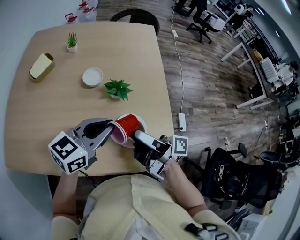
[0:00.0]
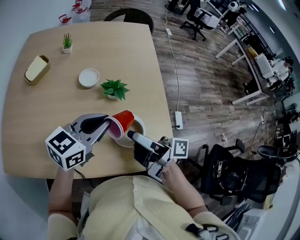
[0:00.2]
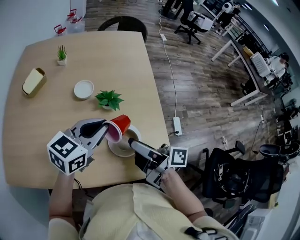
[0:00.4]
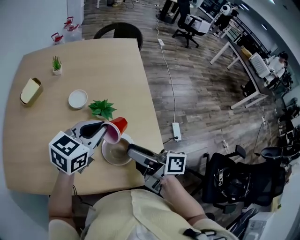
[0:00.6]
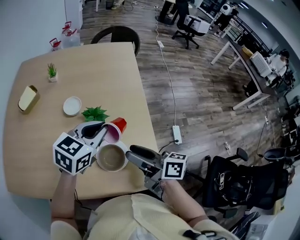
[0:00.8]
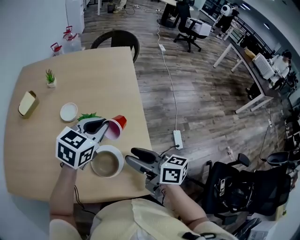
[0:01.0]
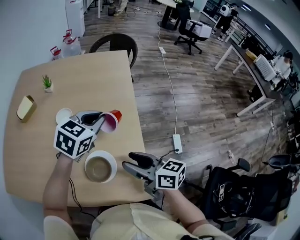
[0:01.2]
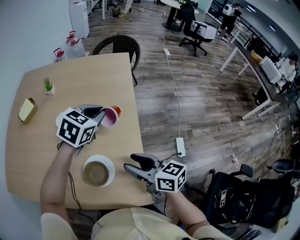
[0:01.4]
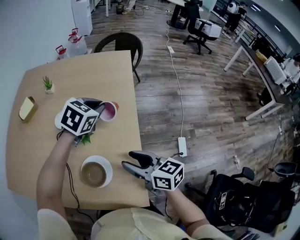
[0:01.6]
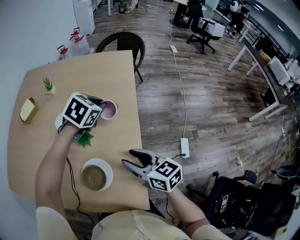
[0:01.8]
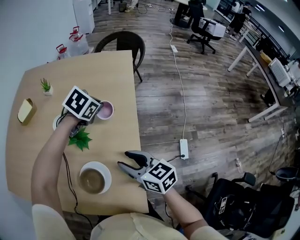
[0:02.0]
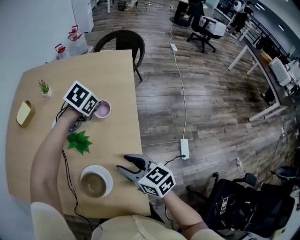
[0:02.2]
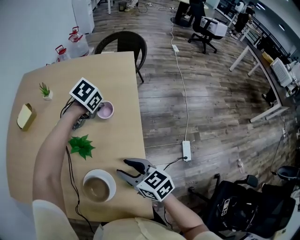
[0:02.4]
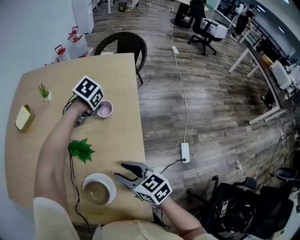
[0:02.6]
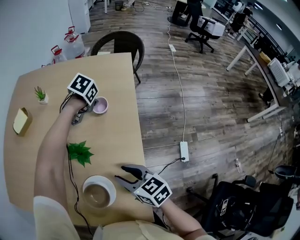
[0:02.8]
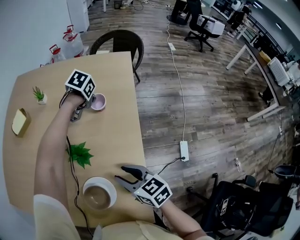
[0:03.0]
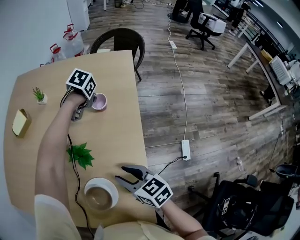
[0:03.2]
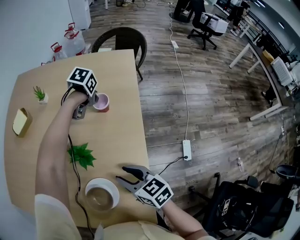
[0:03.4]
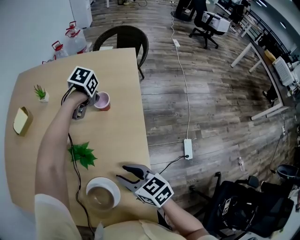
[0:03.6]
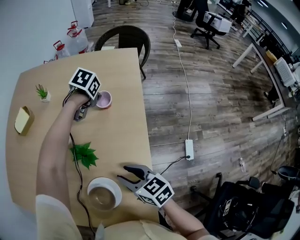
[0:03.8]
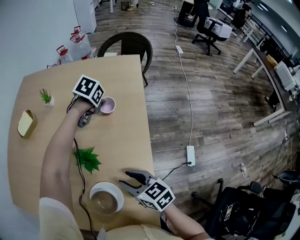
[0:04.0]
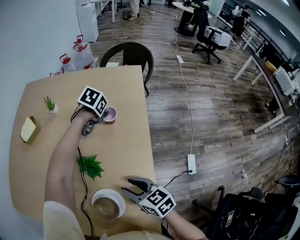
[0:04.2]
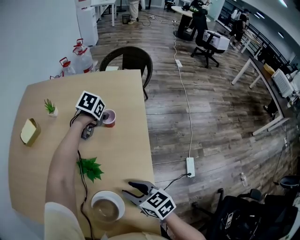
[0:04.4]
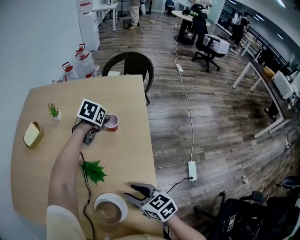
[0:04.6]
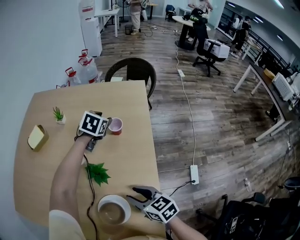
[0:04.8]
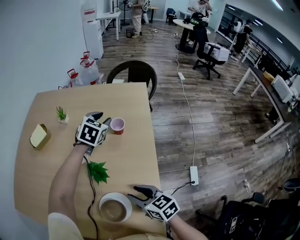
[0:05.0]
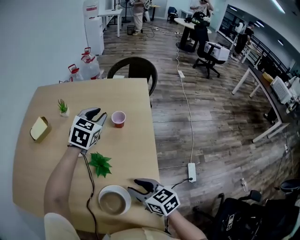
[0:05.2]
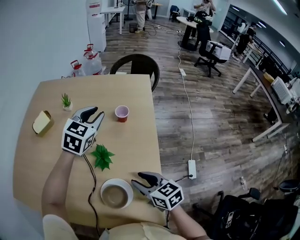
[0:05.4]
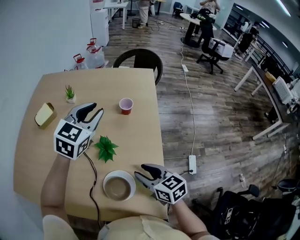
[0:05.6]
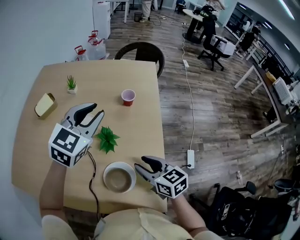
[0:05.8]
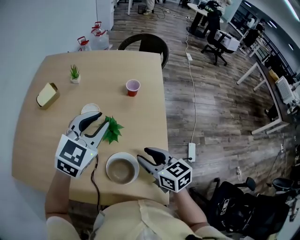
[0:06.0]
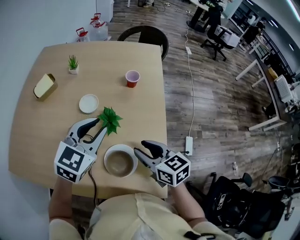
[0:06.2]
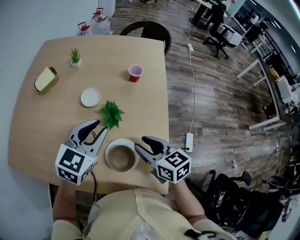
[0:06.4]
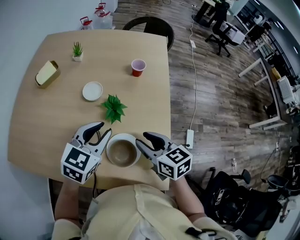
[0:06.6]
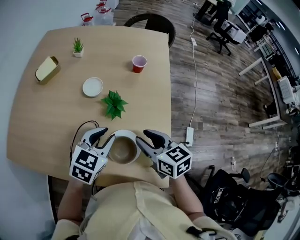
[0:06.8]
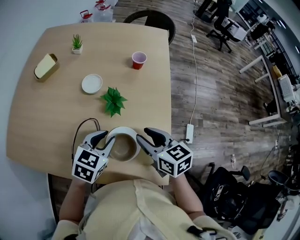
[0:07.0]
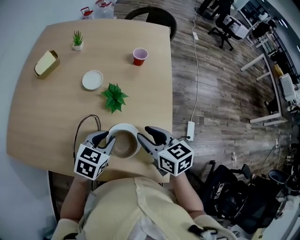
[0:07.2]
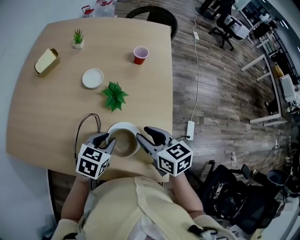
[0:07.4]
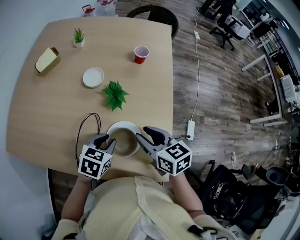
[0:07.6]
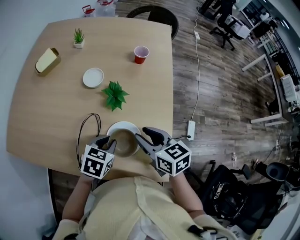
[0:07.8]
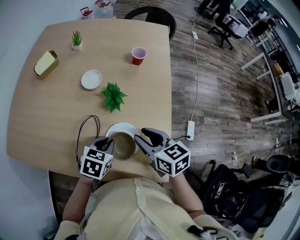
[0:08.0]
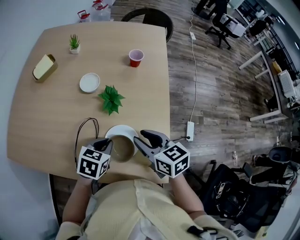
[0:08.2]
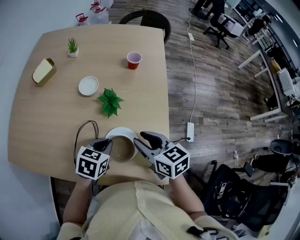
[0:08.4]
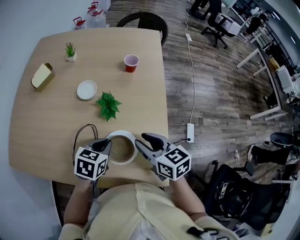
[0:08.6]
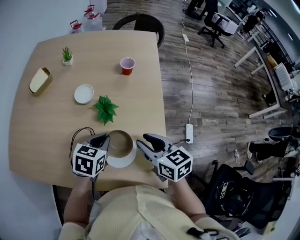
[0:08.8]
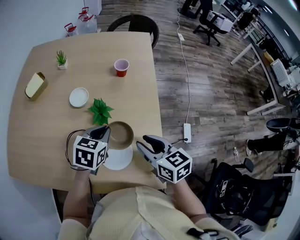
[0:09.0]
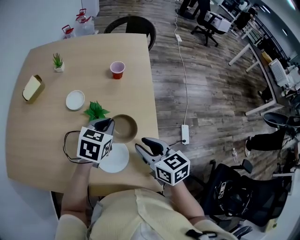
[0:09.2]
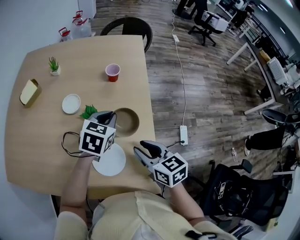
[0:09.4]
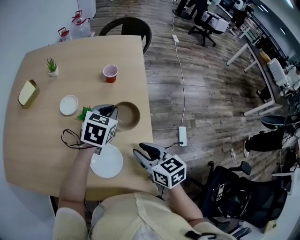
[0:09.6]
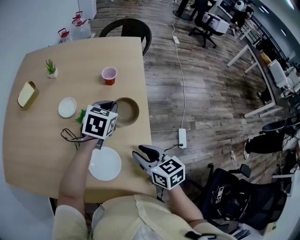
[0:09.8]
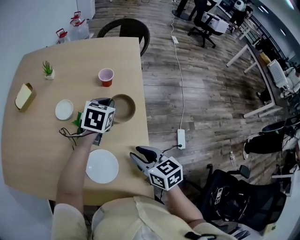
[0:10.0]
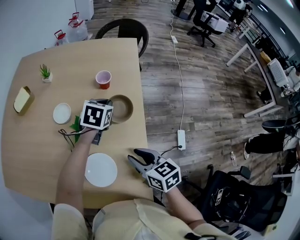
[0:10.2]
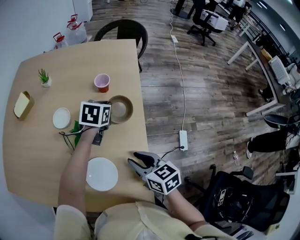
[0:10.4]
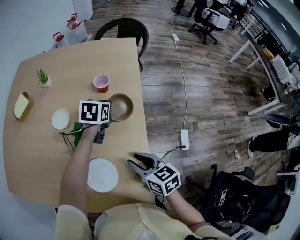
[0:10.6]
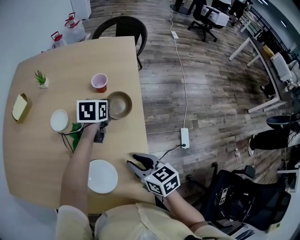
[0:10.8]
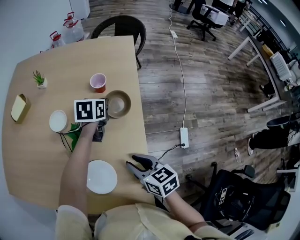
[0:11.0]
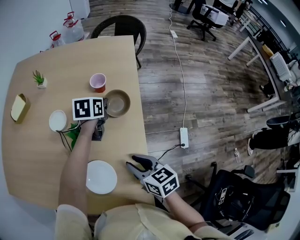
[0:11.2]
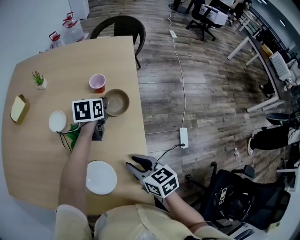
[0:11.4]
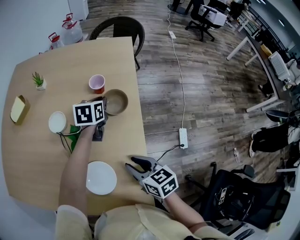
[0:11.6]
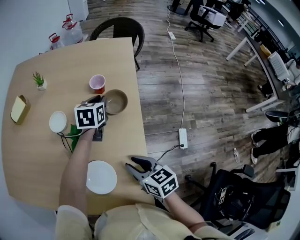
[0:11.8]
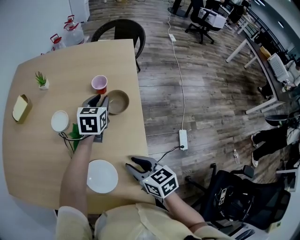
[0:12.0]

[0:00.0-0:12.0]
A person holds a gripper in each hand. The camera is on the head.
0:00.0 to 0:01.6: The left gripper is displaced forward and to the right by about 30 cm, and tilts its fingers approximately 30 degrees downward; the right gripper moves to the right, about 20 cm, and twists approximately 50 degrees counterclockwise, seen from behind.
0:01.6 to 0:03.0: The left gripper shifts roughly 20 cm forward and downward, and swivels some 30 degrees, while the right gripper shifts about 10 cm forward and downward.
0:03.0 to 0:04.4: The left gripper opens its fingers.
0:04.4 to 0:06.0: The right gripper shifts approximately 5 cm upward. Meanwhile the left gripper moves backward, upward and to the left, about 35 cm, and points its fingers approximately 40 degrees further upward.
0:06.0 to 0:07.6: The left gripper travels downward and backward by roughly 25 cm, and swivels about 40 degrees.
0:07.6 to 0:09.0: The left gripper moves forward and upward, approximately 10 cm, and closes.
0:09.0 to 0:10.4: The right gripper changes place by some 5 cm. Meanwhile the left gripper shifts approximately 20 cm forward and to the right.
0:10.4 to 0:12.0: The grippers make only small movements.

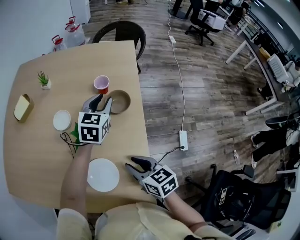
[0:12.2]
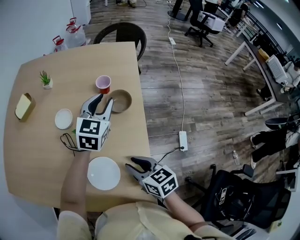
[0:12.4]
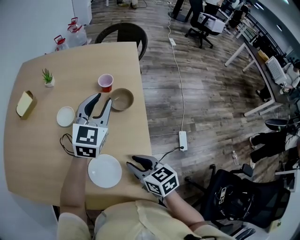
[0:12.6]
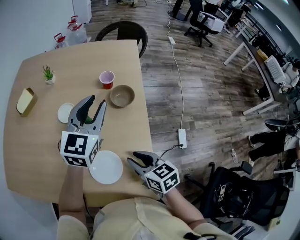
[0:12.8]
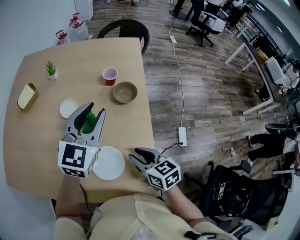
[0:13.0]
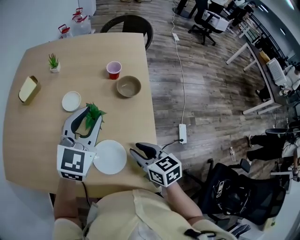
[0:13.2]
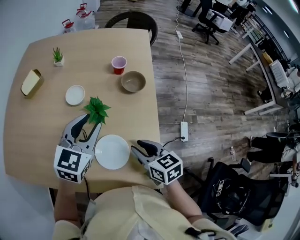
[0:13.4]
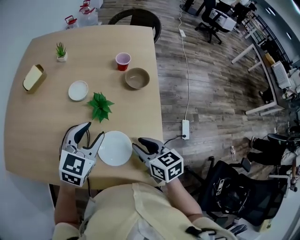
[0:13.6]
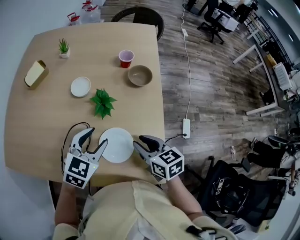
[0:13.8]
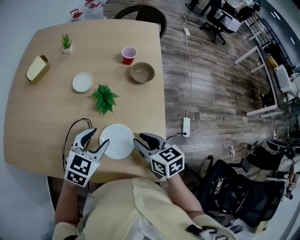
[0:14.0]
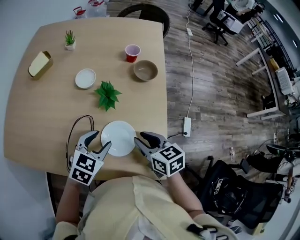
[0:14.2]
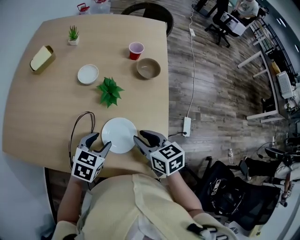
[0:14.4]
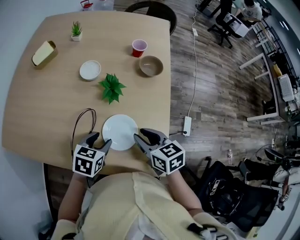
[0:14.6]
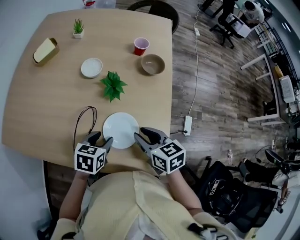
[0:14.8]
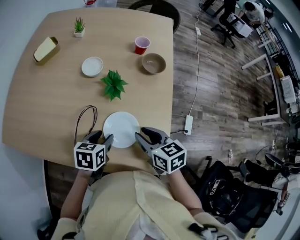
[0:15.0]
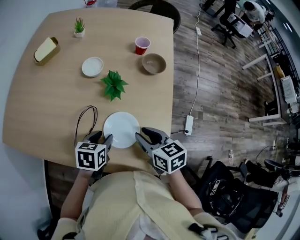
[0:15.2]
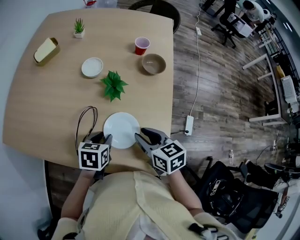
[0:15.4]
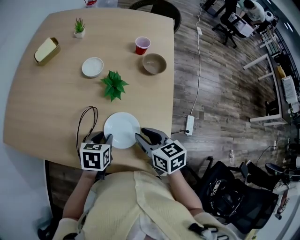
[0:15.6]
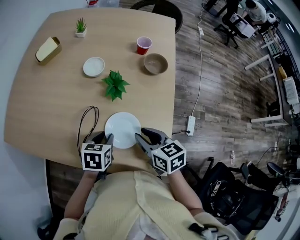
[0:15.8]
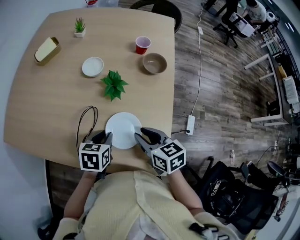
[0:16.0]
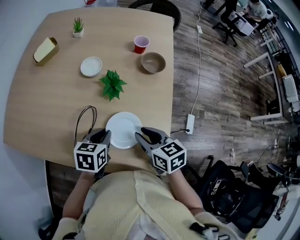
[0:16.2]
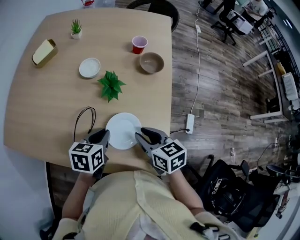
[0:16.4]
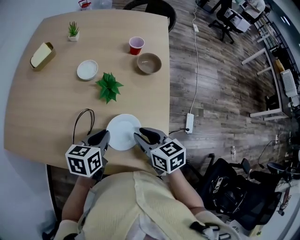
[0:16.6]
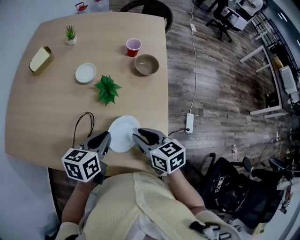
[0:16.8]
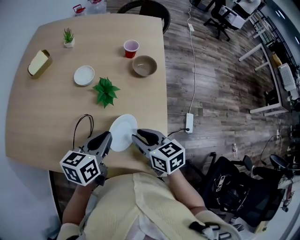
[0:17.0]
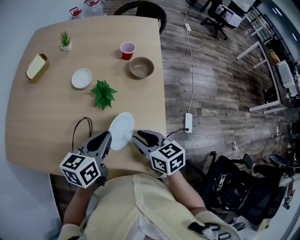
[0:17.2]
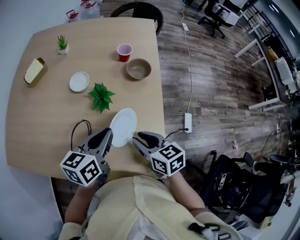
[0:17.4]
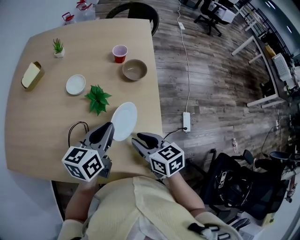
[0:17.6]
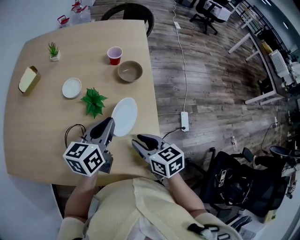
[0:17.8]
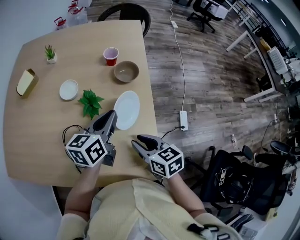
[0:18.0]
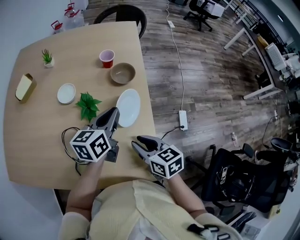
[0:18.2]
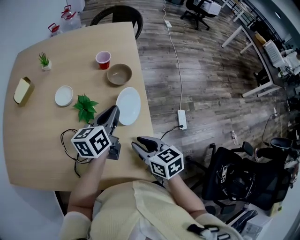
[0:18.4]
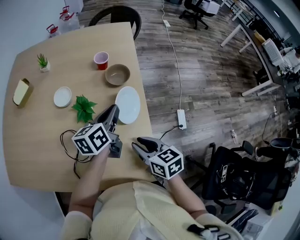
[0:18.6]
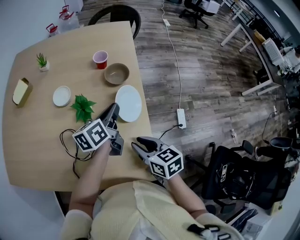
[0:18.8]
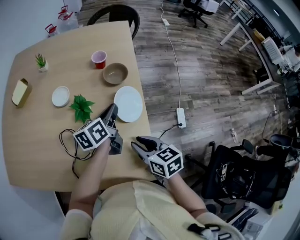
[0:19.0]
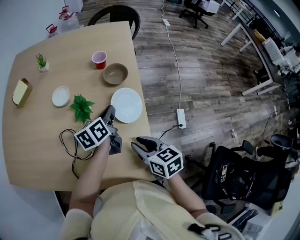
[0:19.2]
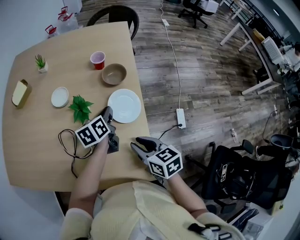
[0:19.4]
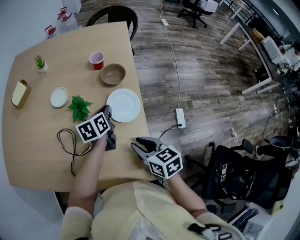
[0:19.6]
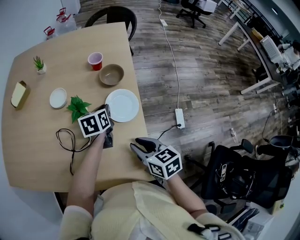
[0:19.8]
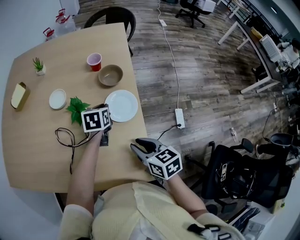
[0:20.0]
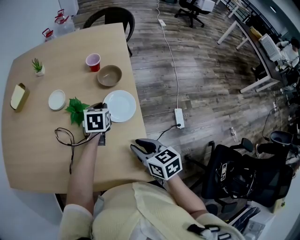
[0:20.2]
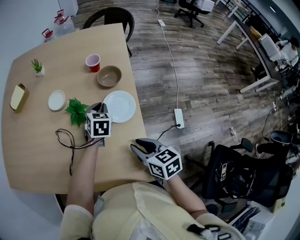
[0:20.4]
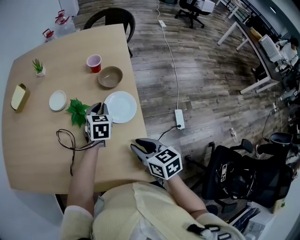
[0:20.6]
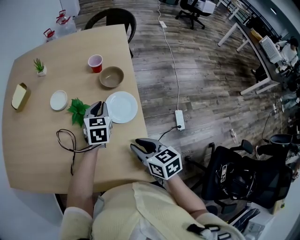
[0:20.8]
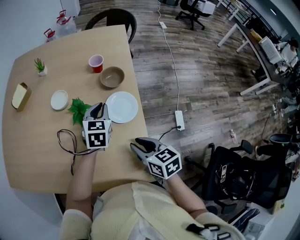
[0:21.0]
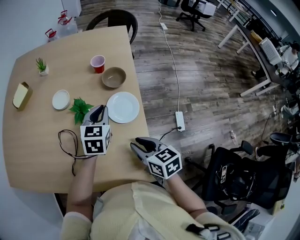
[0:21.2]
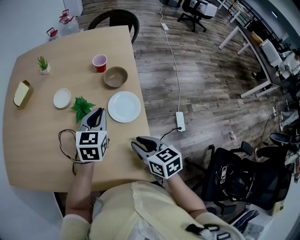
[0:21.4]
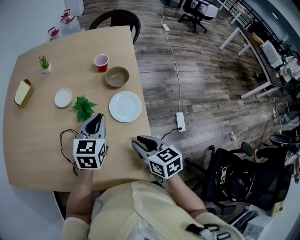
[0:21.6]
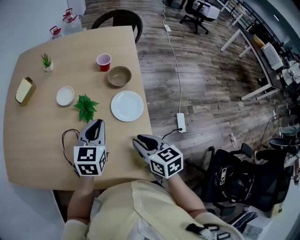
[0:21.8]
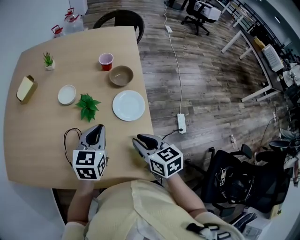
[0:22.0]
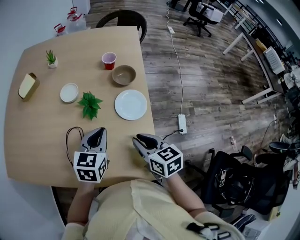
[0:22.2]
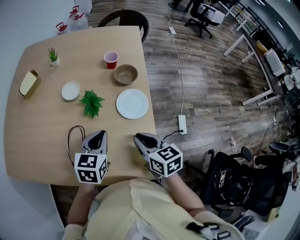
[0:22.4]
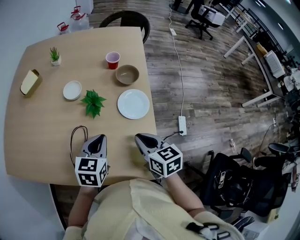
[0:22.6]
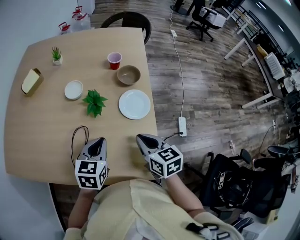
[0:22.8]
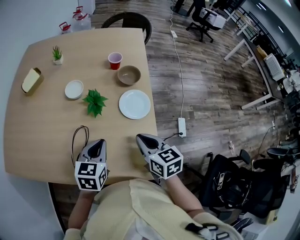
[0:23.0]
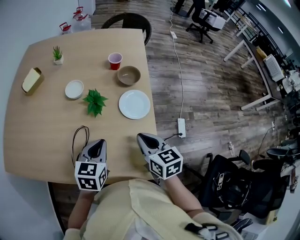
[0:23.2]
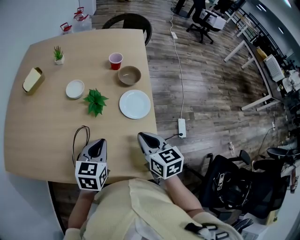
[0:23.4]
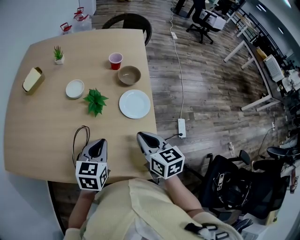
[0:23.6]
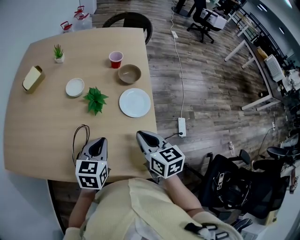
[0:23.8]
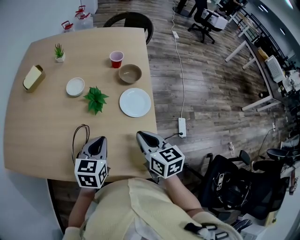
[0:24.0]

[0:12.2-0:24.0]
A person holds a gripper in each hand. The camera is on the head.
0:12.2 to 0:13.6: The left gripper moves backward and to the left, some 25 cm. The right gripper changes place by about 5 cm.
0:13.6 to 0:15.2: The left gripper shifts approximately 15 cm downward and backward, and rotates about 40 degrees.
0:15.2 to 0:16.6: The left gripper moves upward, roughly 5 cm, and closes.
0:16.6 to 0:18.2: The left gripper heads to the right, forward and upward, covering about 20 cm, and rotates roughly 20 degrees. Meanwhile the right gripper heads to the right, covering approximately 5 cm.
0:18.2 to 0:19.6: The left gripper goes some 10 cm downward, and swivels approximately 20 degrees.
0:19.6 to 0:21.0: The left gripper changes its angle by about 40 degrees.
0:21.0 to 0:22.6: The left gripper travels backward and to the left by some 15 cm.
0:22.6 to 0:24.0: There are only small adjustments of the grippers.
